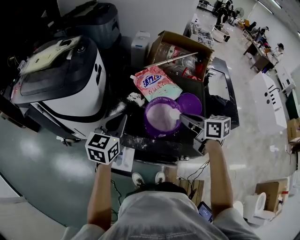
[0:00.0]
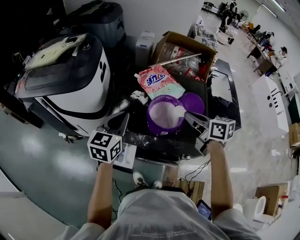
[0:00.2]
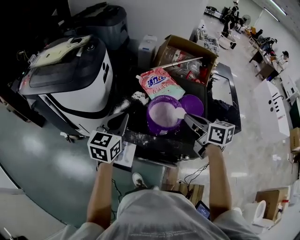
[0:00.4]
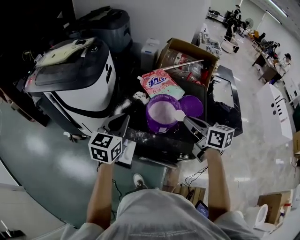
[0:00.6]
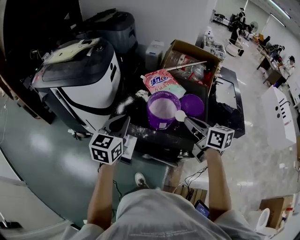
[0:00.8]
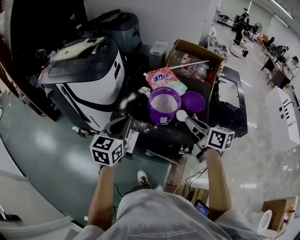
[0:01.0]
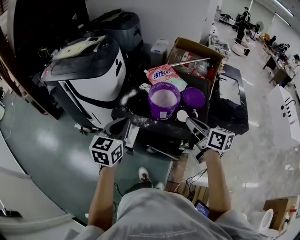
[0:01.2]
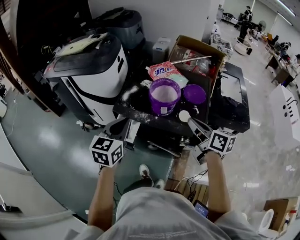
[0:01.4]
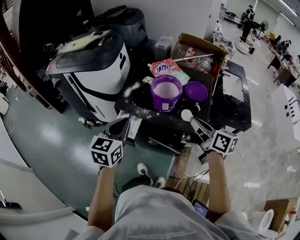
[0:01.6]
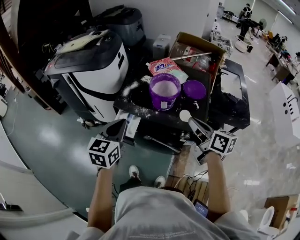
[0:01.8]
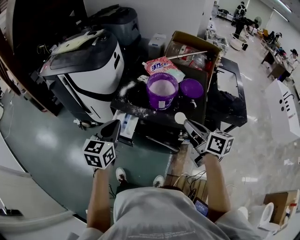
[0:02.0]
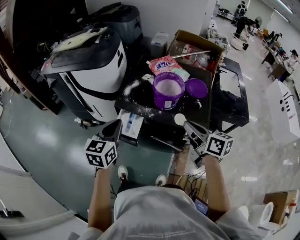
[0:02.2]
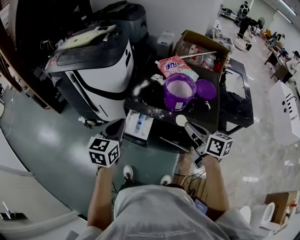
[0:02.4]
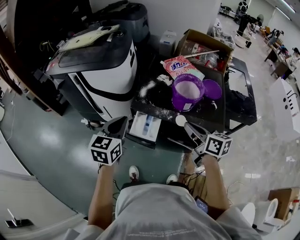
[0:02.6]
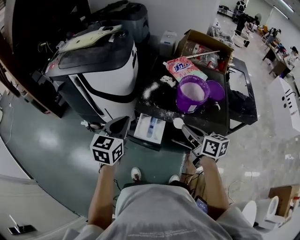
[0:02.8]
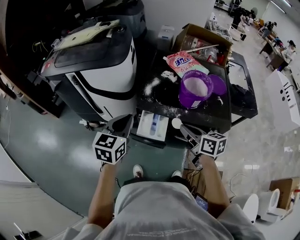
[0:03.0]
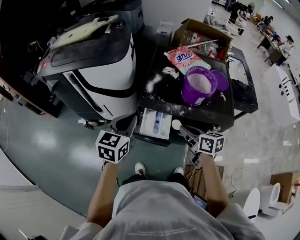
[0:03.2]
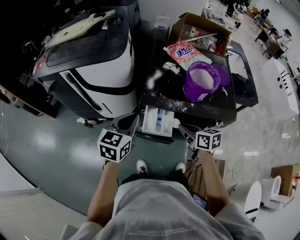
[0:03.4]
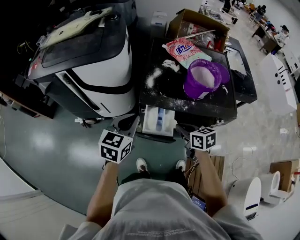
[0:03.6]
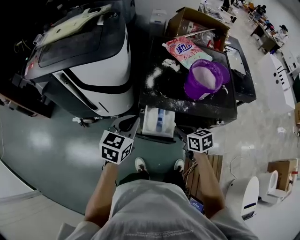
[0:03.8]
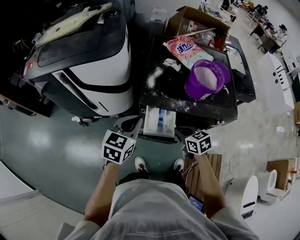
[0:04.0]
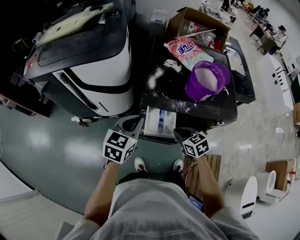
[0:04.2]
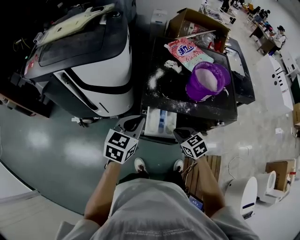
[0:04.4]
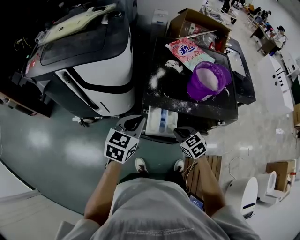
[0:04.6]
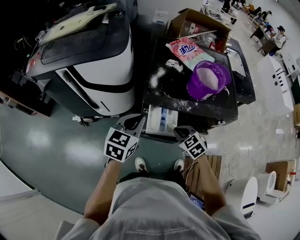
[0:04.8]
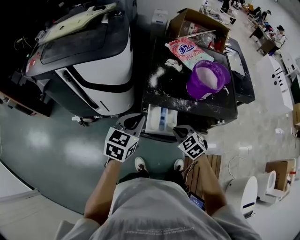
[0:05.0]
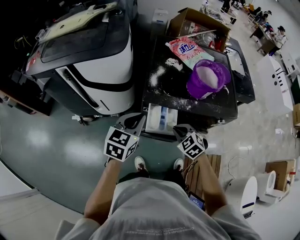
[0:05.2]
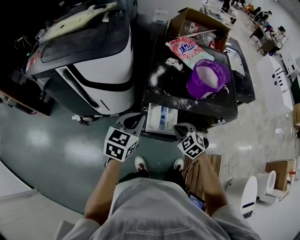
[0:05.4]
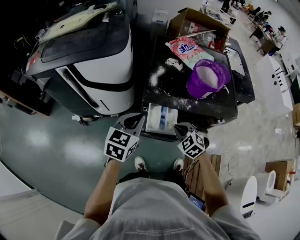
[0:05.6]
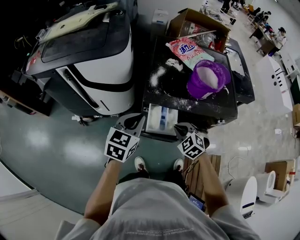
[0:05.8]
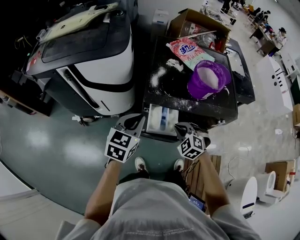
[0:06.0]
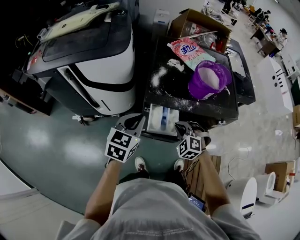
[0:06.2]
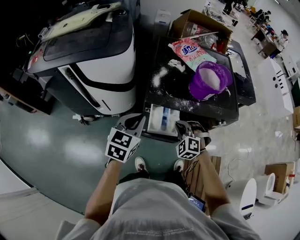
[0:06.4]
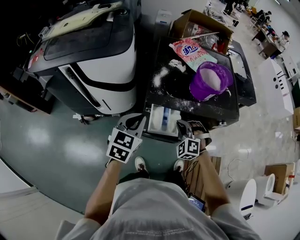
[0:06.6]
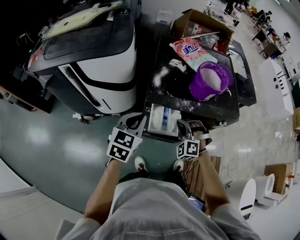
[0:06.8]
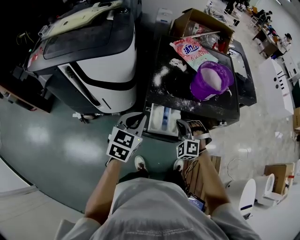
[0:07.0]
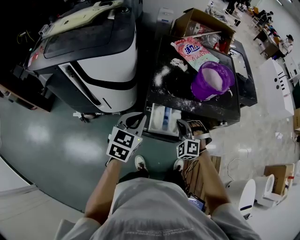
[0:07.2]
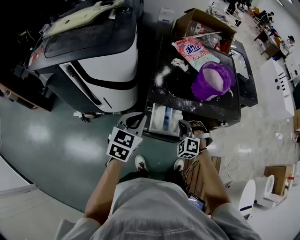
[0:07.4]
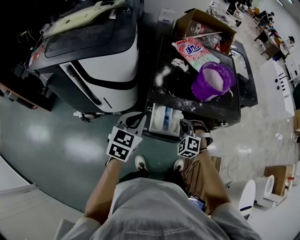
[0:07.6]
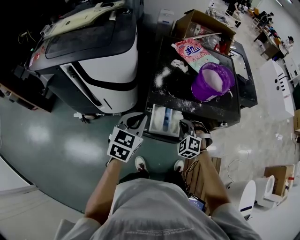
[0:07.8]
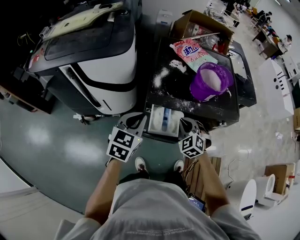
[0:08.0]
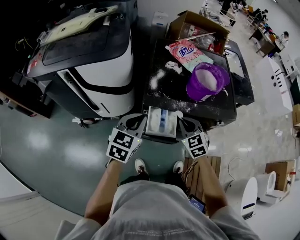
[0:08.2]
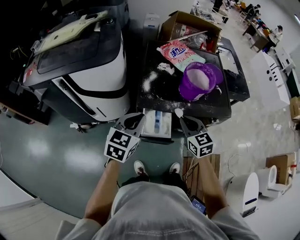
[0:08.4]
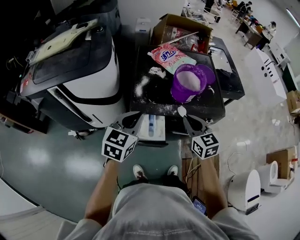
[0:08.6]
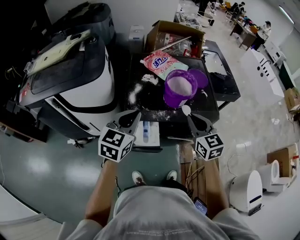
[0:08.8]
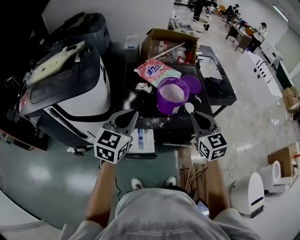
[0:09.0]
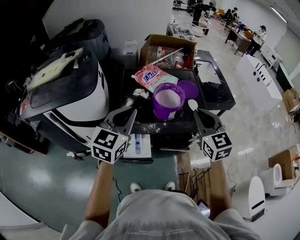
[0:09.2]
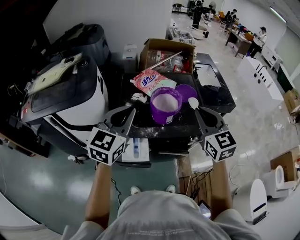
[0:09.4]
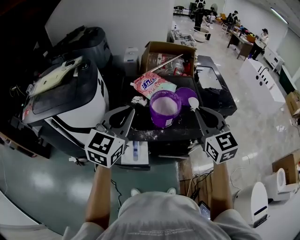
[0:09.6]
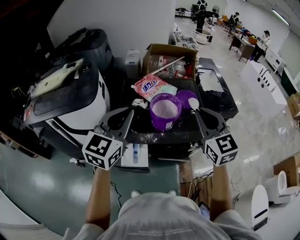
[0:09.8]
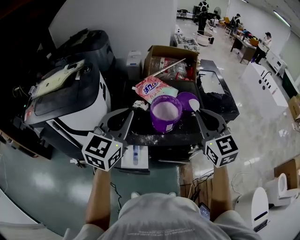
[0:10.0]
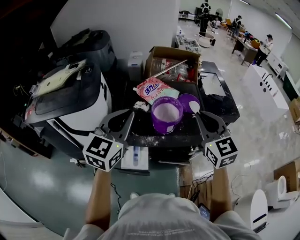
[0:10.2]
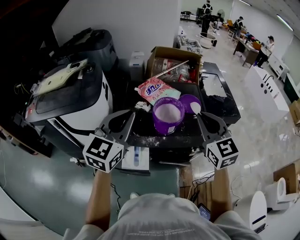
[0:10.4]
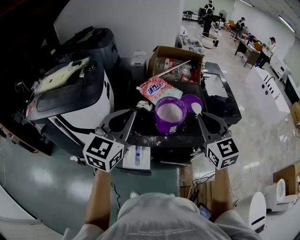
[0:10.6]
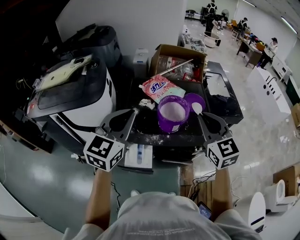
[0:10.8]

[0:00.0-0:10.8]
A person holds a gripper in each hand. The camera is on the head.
0:00.0 to 0:01.6: Both grippers travel together backward, about 20 cm.
0:01.6 to 0:03.0: The right gripper travels to the left and downward by roughly 25 cm; the left gripper travels to the left and forward by about 20 cm.
0:03.0 to 0:04.6: The right gripper moves downward and to the left, about 15 cm, and changes its angle by about 50 degrees. The left gripper heads downward, covering some 10 cm.
0:04.6 to 0:06.2: The right gripper rotates around the line of its fingers by some 40 degrees, counterclockwise from behind.
0:06.2 to 0:07.8: The grippers stay close to where they were, moving slightly.
0:07.8 to 0:09.2: The left gripper is displaced upward, to the right and forward by about 25 cm, while the right gripper travels upward and to the right by approximately 35 cm, and twists approximately 50 degrees clockwise, seen from behind.
0:09.2 to 0:10.8: The left gripper goes approximately 5 cm upward, while the right gripper shifts by approximately 5 cm.

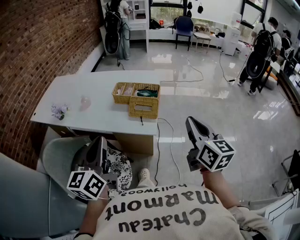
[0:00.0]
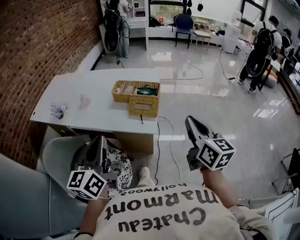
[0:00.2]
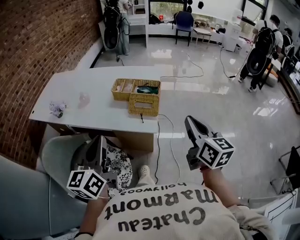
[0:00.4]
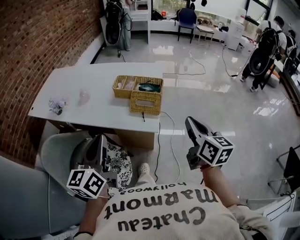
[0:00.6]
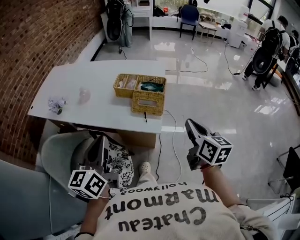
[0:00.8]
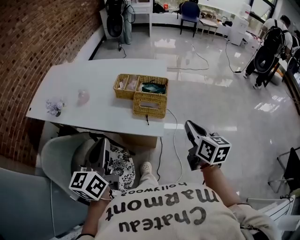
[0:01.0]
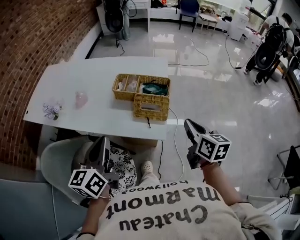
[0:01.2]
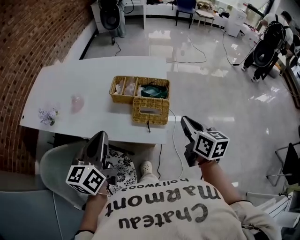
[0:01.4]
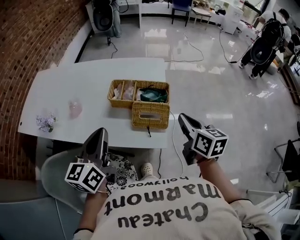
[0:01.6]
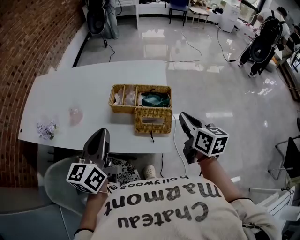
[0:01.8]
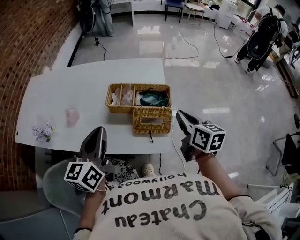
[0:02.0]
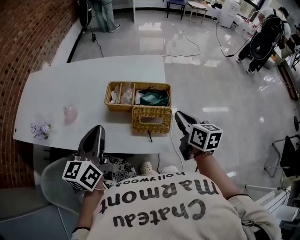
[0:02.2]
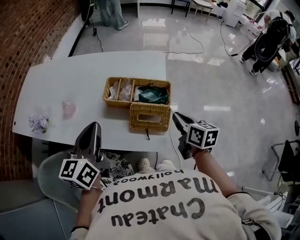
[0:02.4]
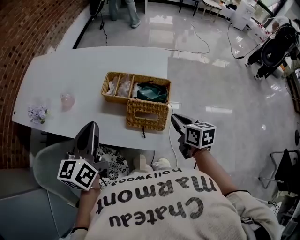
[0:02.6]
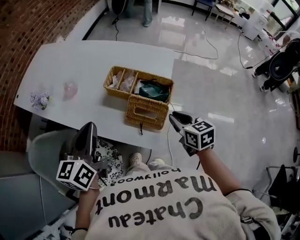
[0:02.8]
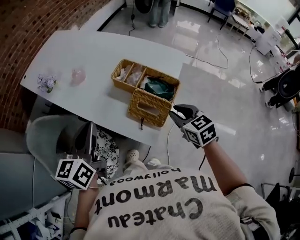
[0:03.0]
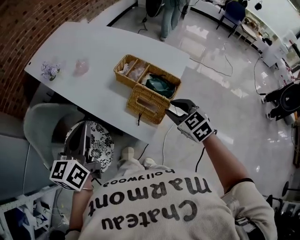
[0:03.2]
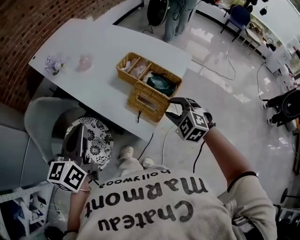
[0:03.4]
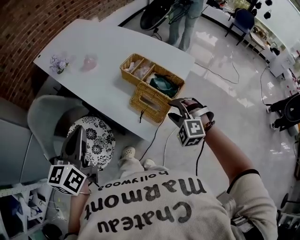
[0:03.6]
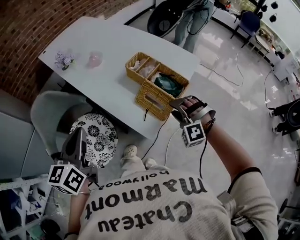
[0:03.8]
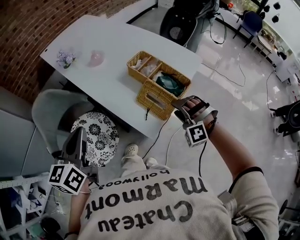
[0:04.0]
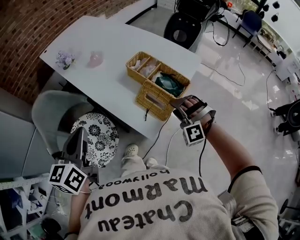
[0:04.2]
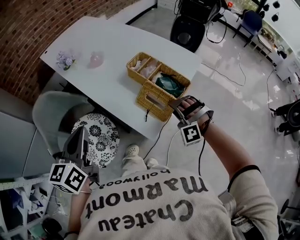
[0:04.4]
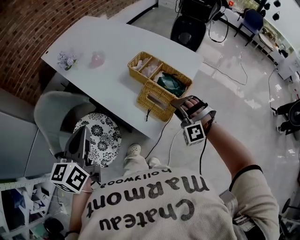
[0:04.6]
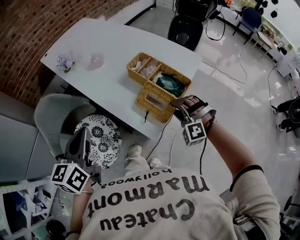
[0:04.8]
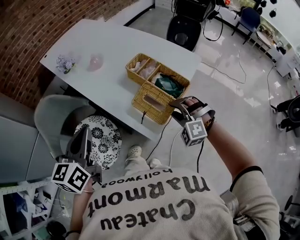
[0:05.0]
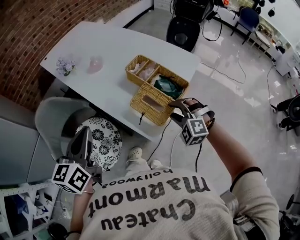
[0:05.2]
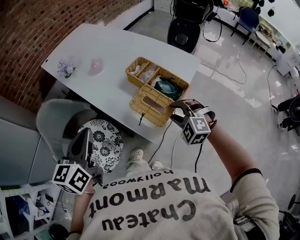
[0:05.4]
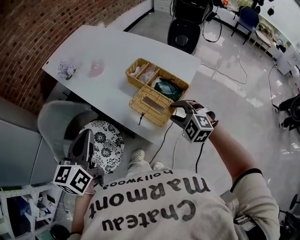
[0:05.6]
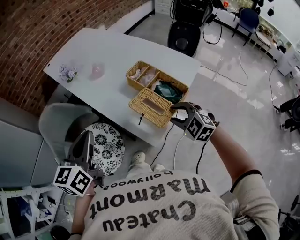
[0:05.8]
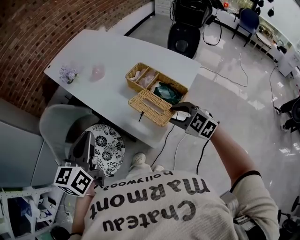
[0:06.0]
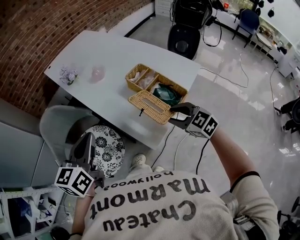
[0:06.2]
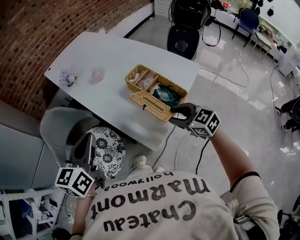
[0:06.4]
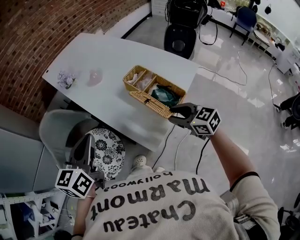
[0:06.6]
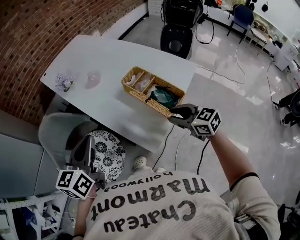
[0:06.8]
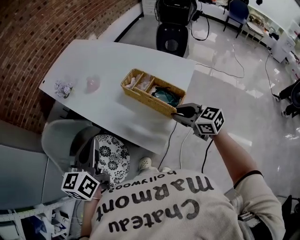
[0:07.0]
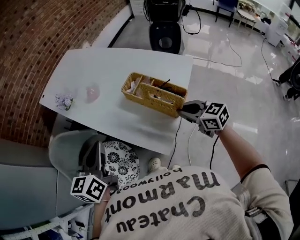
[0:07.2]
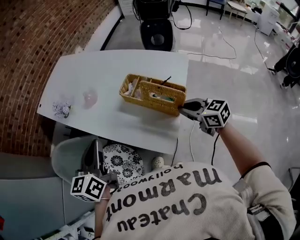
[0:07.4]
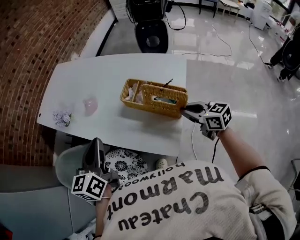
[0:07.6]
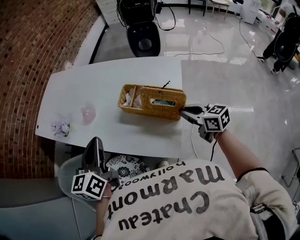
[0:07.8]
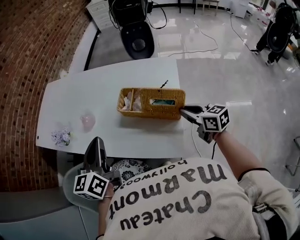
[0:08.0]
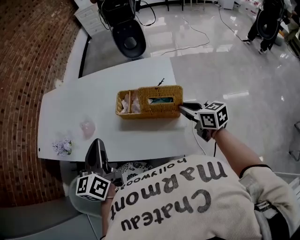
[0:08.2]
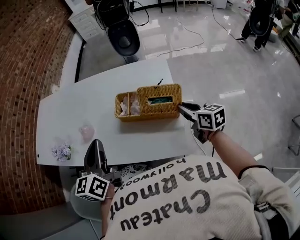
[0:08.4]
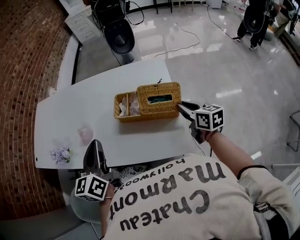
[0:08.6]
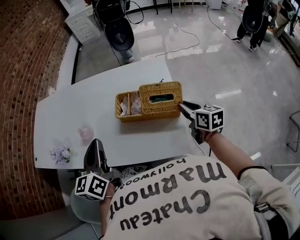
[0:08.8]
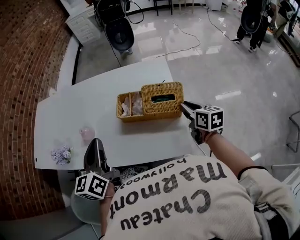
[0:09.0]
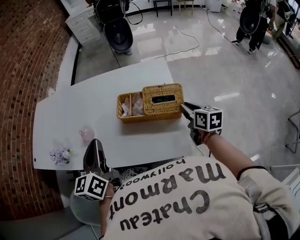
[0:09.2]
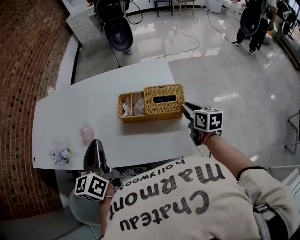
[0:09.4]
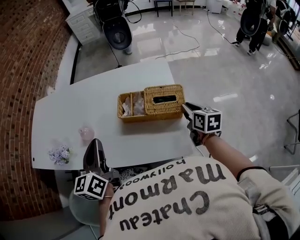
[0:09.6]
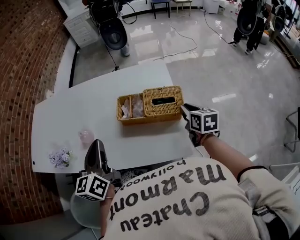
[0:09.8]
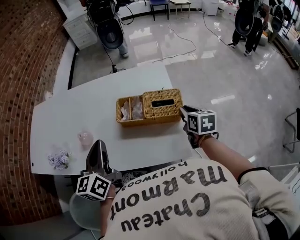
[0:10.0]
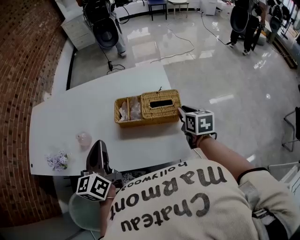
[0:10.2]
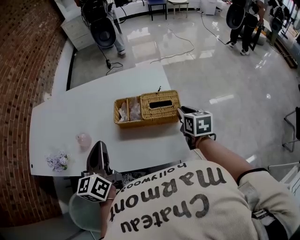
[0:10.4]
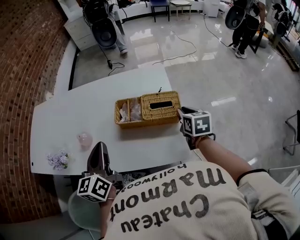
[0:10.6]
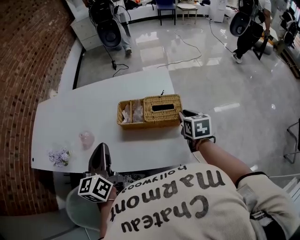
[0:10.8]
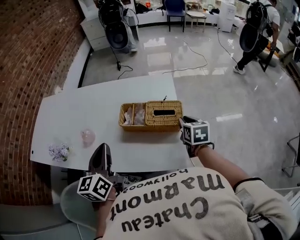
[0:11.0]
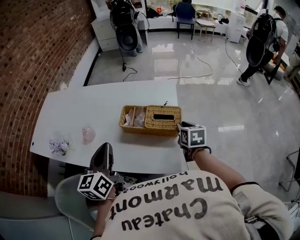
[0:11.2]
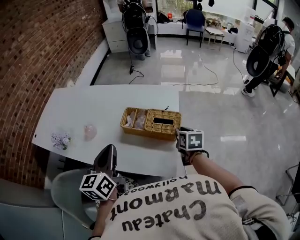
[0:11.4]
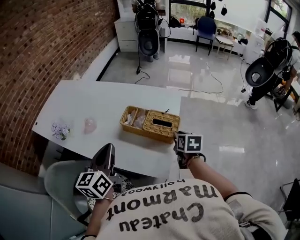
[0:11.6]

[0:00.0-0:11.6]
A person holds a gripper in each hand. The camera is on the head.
0:00.0 to 0:01.4: The right gripper shifts approximately 20 cm forward and downward, and changes its angle by some 20 degrees. Meanwhile the left gripper moves forward, approximately 20 cm.
0:01.4 to 0:02.8: The right gripper moves downward and forward, roughly 15 cm, and changes its angle by about 30 degrees.
0:02.8 to 0:04.4: The left gripper goes some 15 cm backward and to the left, and changes its angle by roughly 20 degrees; the right gripper travels downward by approximately 5 cm, rotates around the line of its fingers by roughly 120 degrees, counterclockwise from behind, and opens.
0:04.4 to 0:05.8: The right gripper heads upward, covering approximately 5 cm, and rotates around the line of its fingers by about 50 degrees, clockwise from behind.
0:05.8 to 0:07.2: The right gripper moves about 5 cm, twists about 40 degrees clockwise, seen from behind, and closes up. Meanwhile the left gripper is displaced forward by roughly 5 cm.
0:07.2 to 0:08.8: The left gripper shifts by approximately 15 cm, and turns by roughly 20 degrees. Meanwhile the right gripper swivels about 60 degrees.
0:08.8 to 0:10.2: There are only small adjustments of the grippers.
0:10.2 to 0:11.6: The left gripper is displaced to the right and backward by some 10 cm.

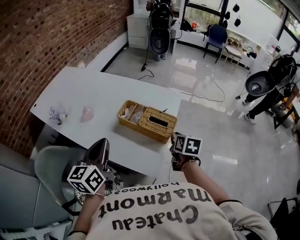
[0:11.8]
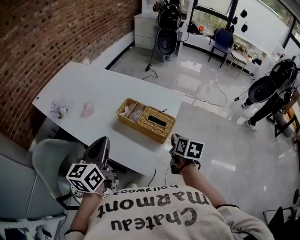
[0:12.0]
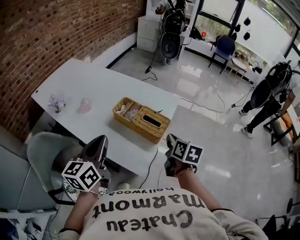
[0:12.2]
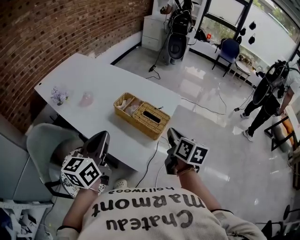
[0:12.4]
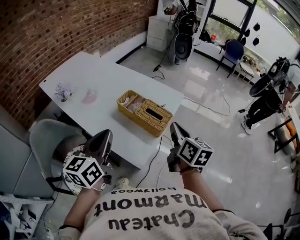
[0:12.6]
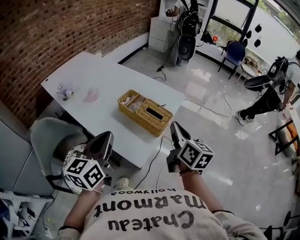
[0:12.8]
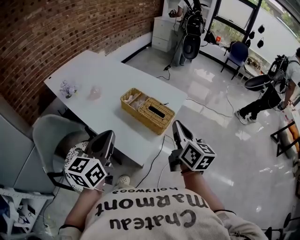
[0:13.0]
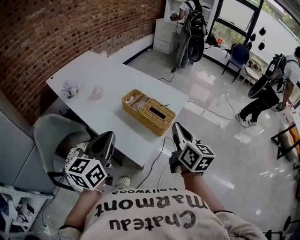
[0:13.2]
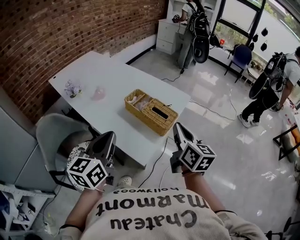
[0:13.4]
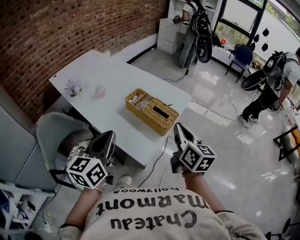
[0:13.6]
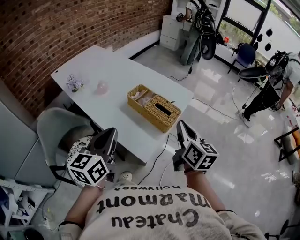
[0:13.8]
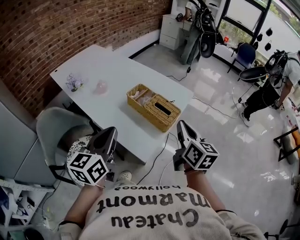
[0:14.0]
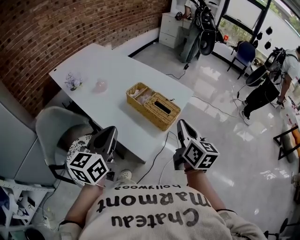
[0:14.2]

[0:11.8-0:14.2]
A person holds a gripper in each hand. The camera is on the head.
0:11.8 to 0:13.0: The right gripper shifts about 15 cm upward, and points its fingers roughly 30 degrees further upward. Meanwhile the left gripper travels backward and to the right by roughly 10 cm.
0:13.0 to 0:14.2: The grippers move only a little.
